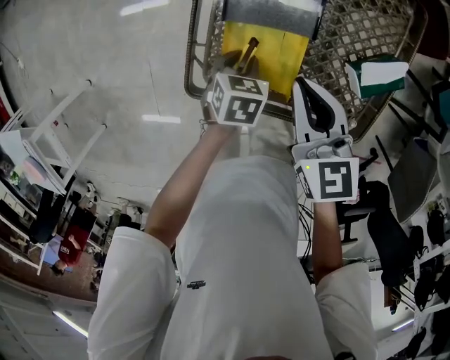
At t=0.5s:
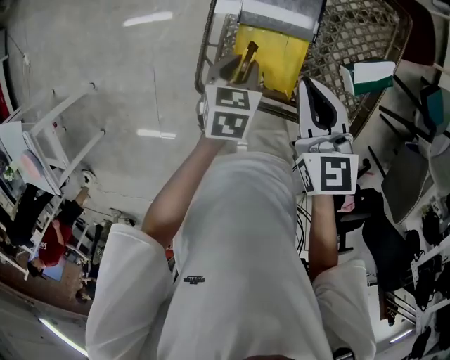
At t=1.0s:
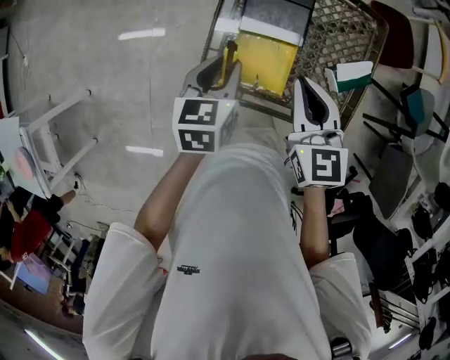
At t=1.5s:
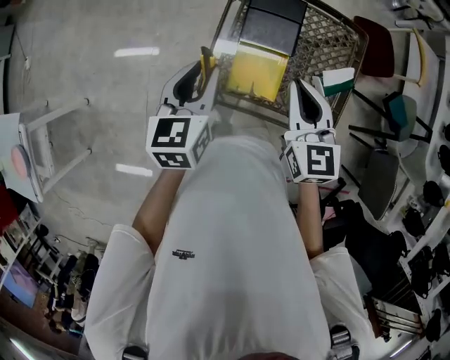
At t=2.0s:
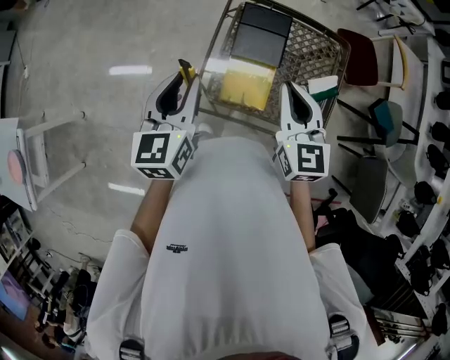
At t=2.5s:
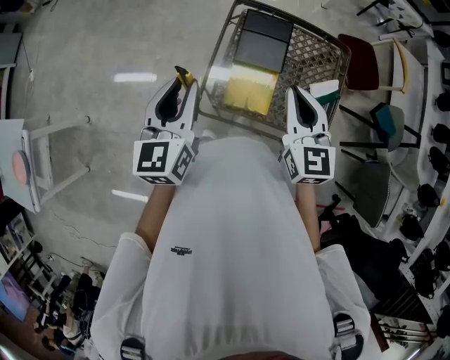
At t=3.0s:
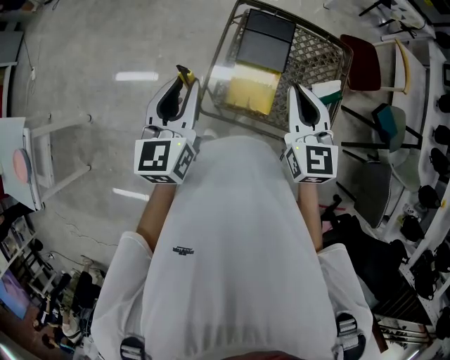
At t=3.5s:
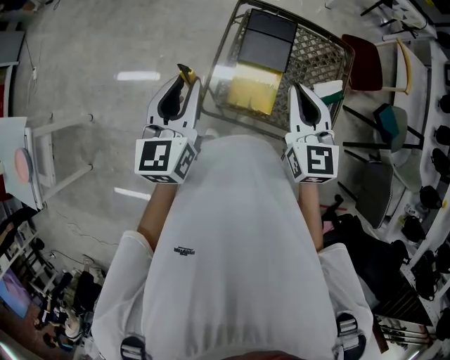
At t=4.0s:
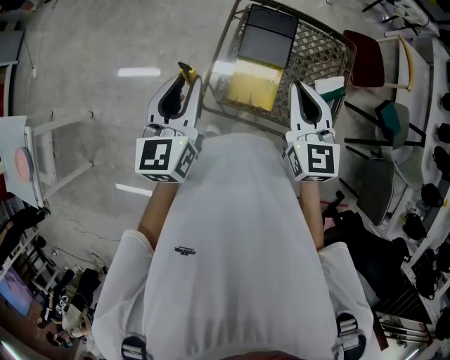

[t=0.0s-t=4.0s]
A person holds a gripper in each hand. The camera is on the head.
t=0.0s to t=2.0s: The right gripper travels upward by approximately 20 cm, and turns by some 20 degrees; the left gripper heads upward, covering some 40 cm, and angles its fingers upward, by some 50 degrees.
t=2.0s to t=4.0s: The grippers stay close to where they were, moving slightly.

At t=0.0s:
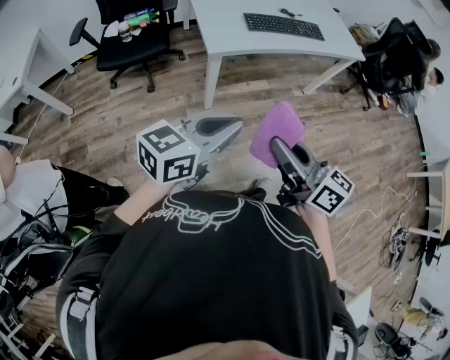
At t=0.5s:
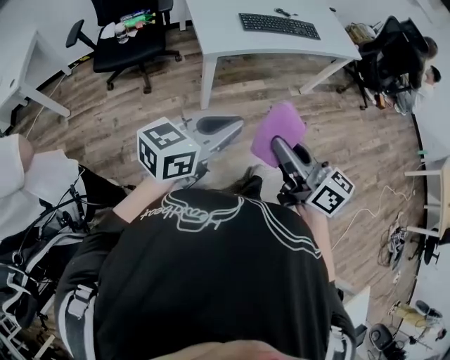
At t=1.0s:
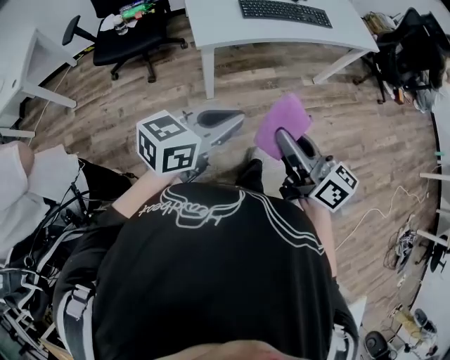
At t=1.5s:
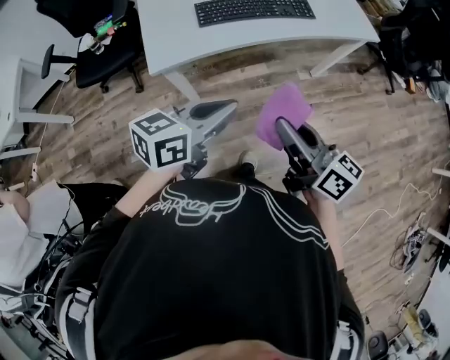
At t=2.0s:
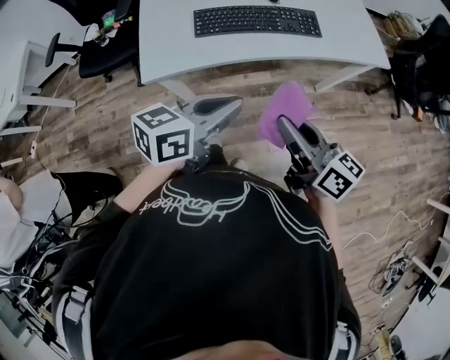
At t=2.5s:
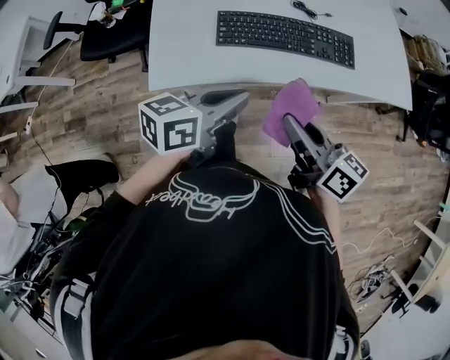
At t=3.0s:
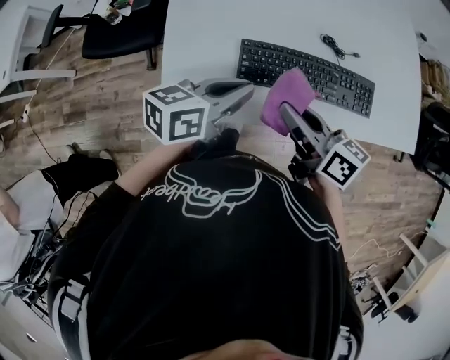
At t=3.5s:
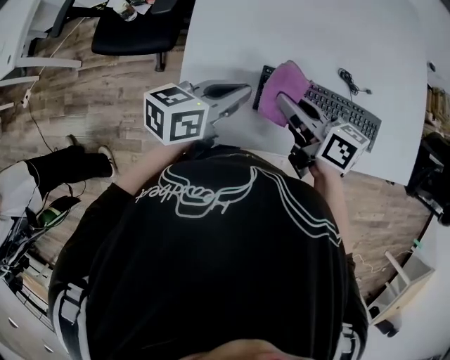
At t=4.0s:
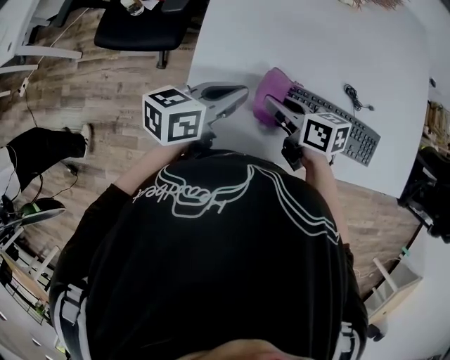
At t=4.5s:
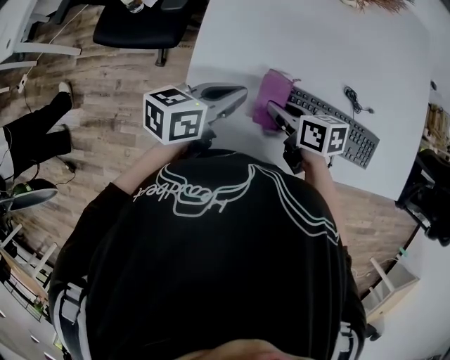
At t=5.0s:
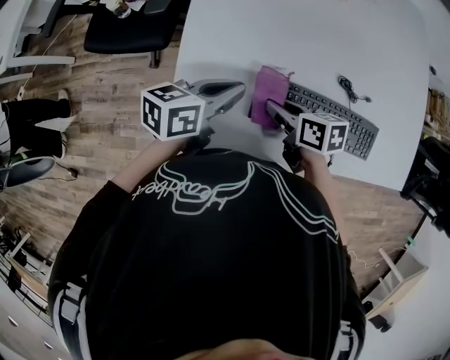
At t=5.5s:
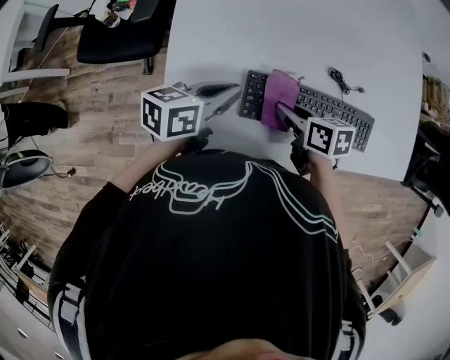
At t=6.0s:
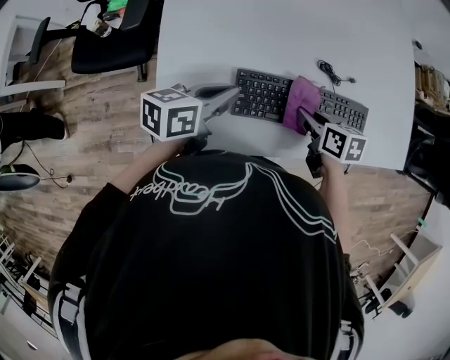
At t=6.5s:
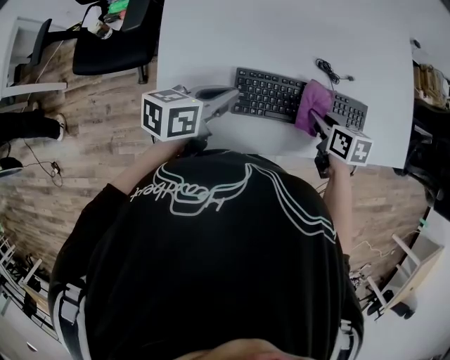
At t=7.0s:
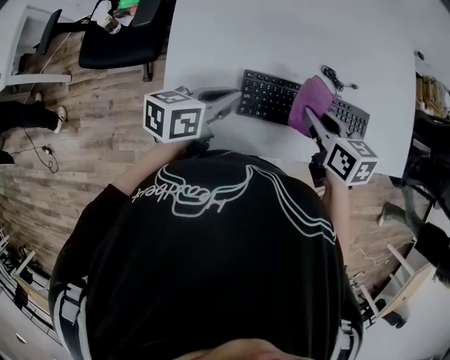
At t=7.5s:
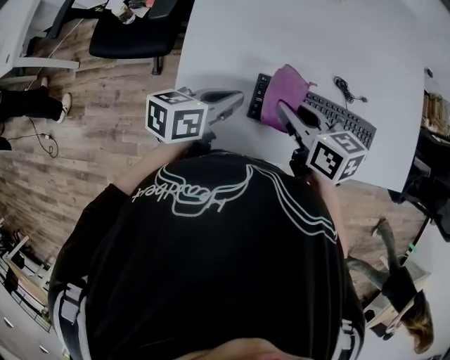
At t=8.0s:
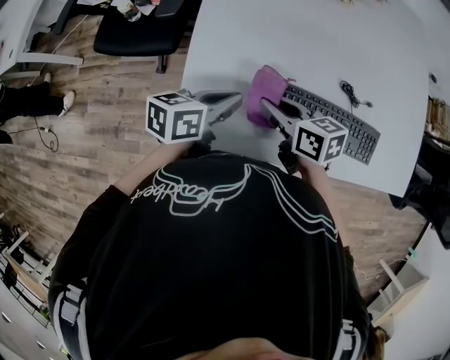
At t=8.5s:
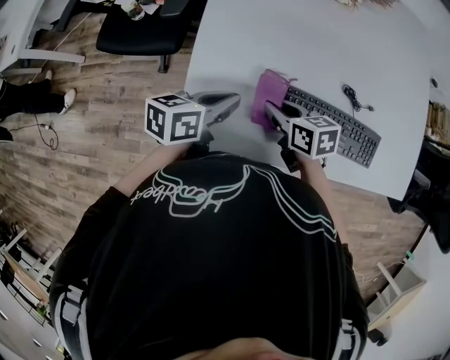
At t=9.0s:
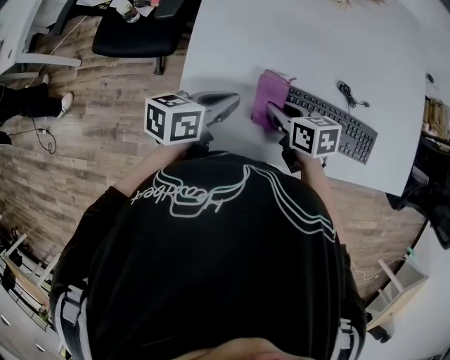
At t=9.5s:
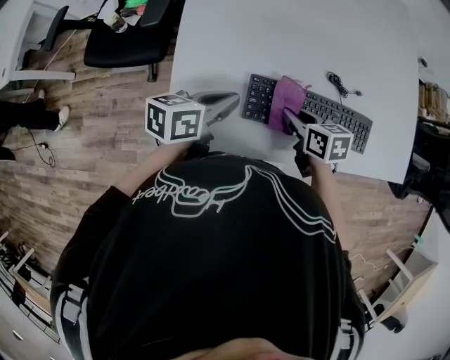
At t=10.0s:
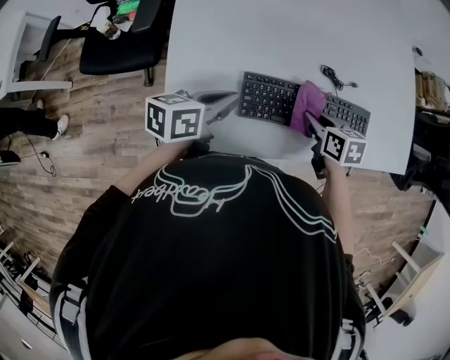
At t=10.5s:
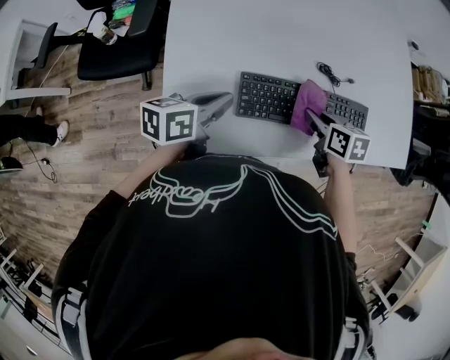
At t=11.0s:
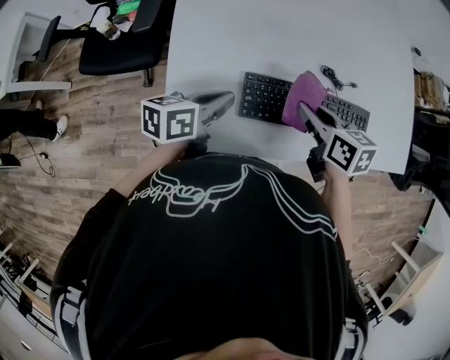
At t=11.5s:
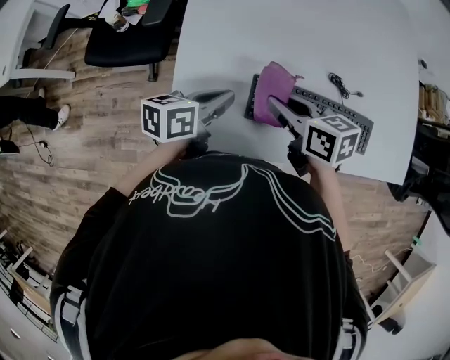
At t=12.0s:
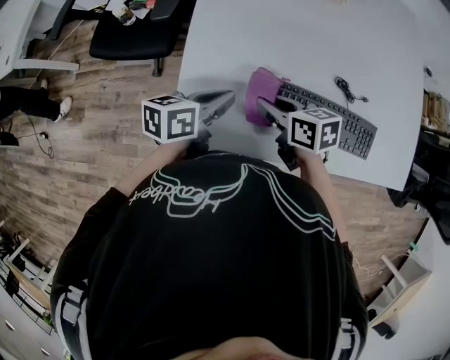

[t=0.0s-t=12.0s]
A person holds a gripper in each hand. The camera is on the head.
t=0.0s to t=2.0s: The two grippers go about 40 cm forward and to the right.
t=2.0s to t=4.0s: The grippers both shift forward and to the left by about 40 cm. The left gripper rotates about 20 degrees, while the right gripper rotates about 40 degrees.
t=4.0s to t=6.0s: The left gripper is displaced to the right by about 5 cm; the right gripper goes some 20 cm to the right, and rotates some 30 degrees.
t=6.0s to t=8.0s: The right gripper heads to the left, covering about 20 cm, and changes its angle by some 30 degrees. Meanwhile the left gripper goes some 5 cm to the left.
t=8.0s to t=10.0s: The right gripper heads to the right, covering roughly 20 cm, and changes its angle by roughly 30 degrees.
t=10.0s to t=12.0s: The right gripper shifts roughly 20 cm to the left, and changes its angle by about 20 degrees.

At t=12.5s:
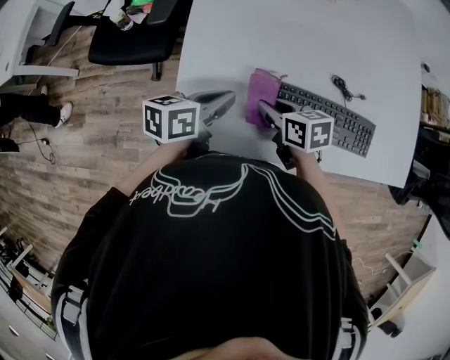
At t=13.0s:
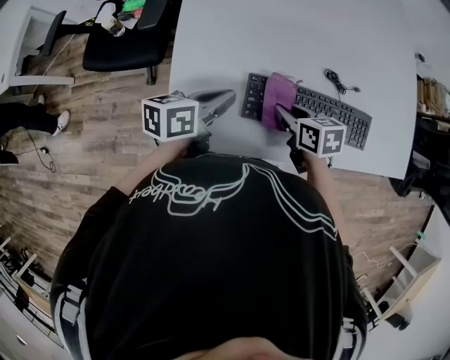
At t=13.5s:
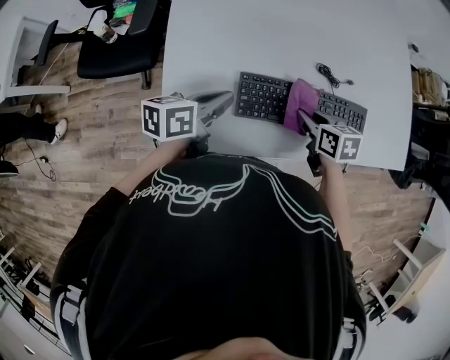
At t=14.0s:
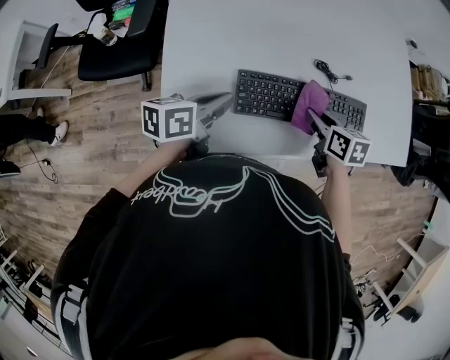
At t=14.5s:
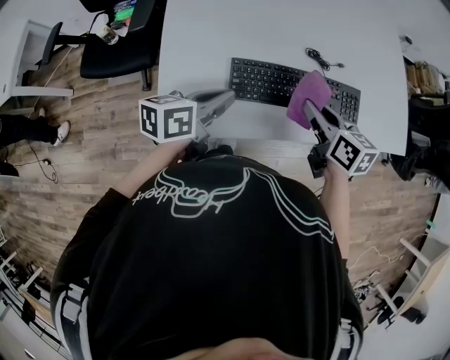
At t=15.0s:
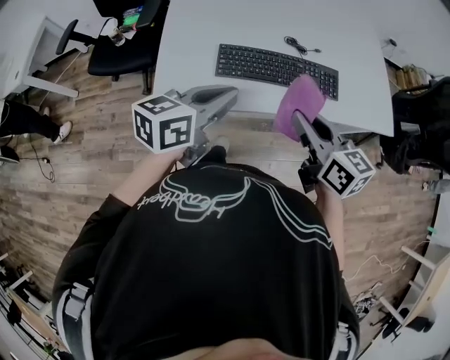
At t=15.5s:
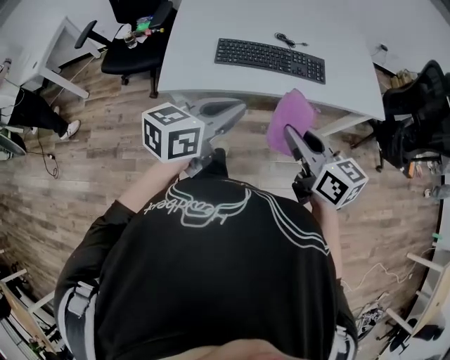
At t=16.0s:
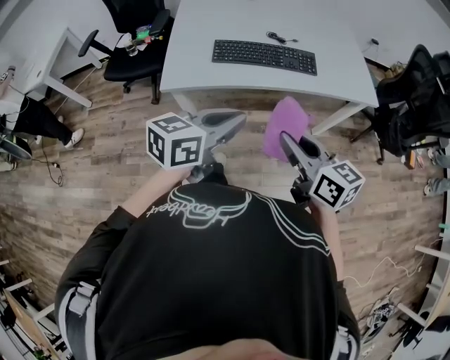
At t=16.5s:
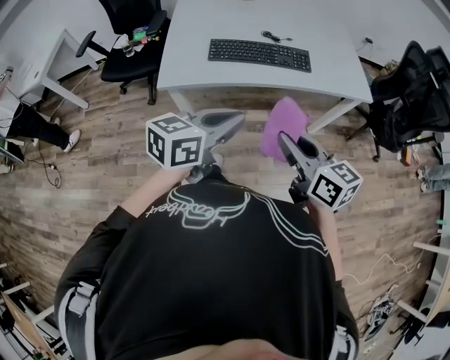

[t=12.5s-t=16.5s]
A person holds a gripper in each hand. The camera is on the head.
t=12.5s to t=14.5s: The right gripper goes roughly 20 cm to the right and upward, and swivels some 30 degrees. The left gripper is displaced to the right by approximately 5 cm.
t=14.5s to t=16.5s: The right gripper shifts some 35 cm backward; the left gripper heads backward and to the right, covering some 35 cm, and turns by approximately 20 degrees.

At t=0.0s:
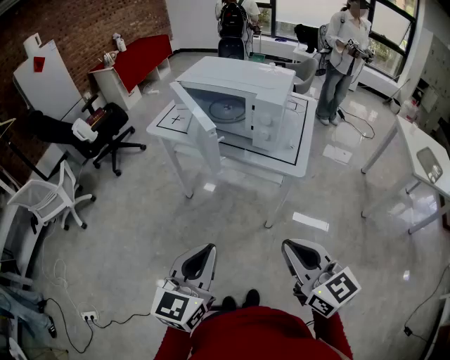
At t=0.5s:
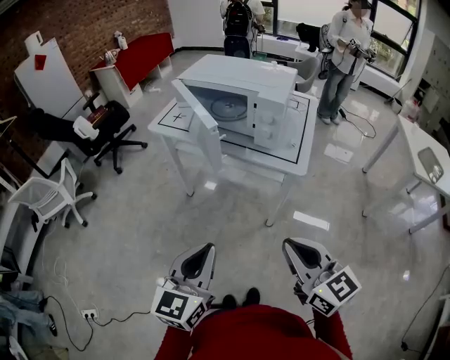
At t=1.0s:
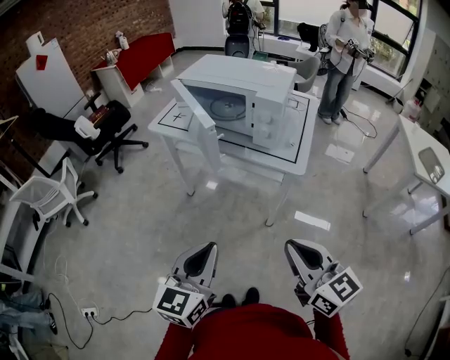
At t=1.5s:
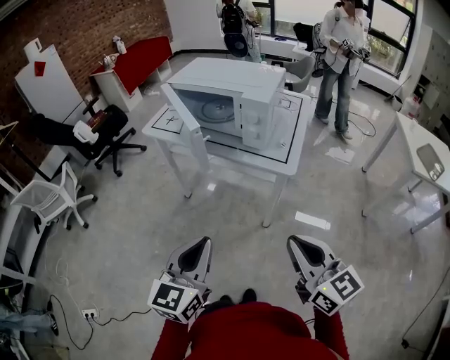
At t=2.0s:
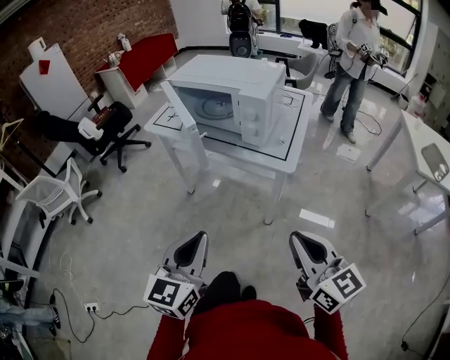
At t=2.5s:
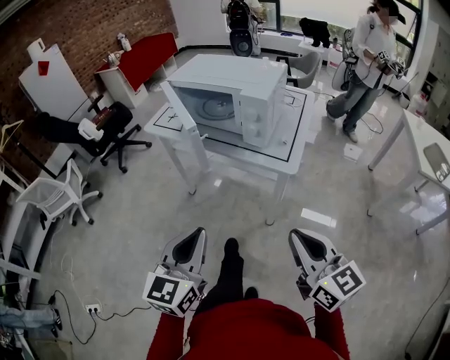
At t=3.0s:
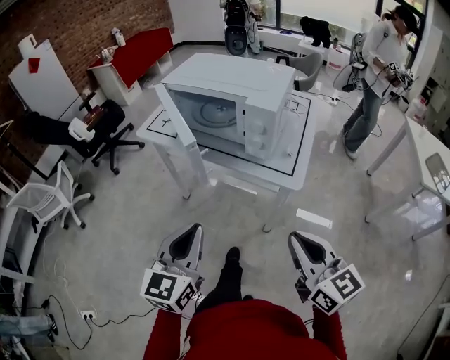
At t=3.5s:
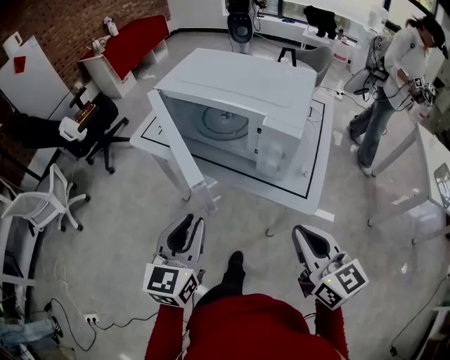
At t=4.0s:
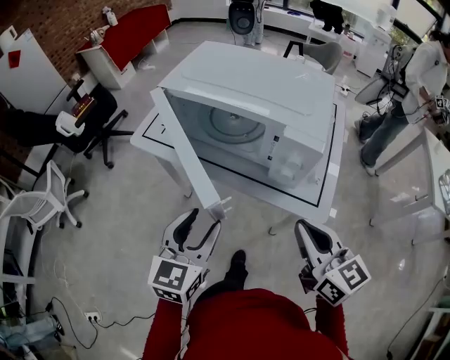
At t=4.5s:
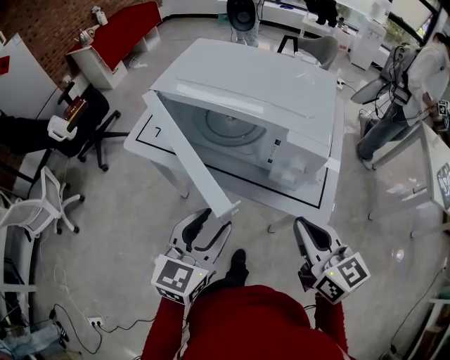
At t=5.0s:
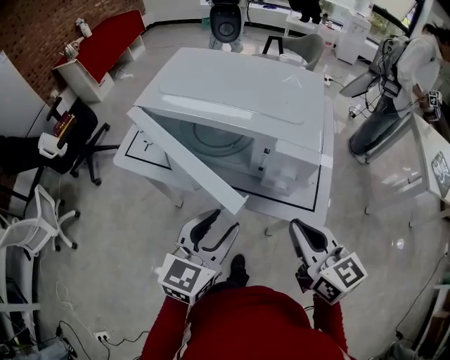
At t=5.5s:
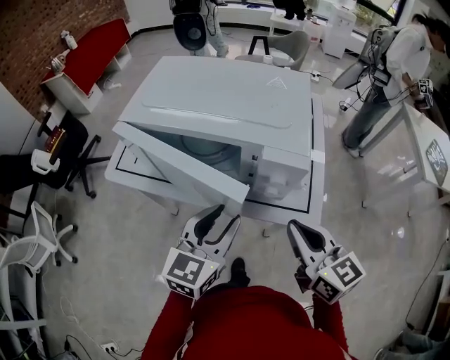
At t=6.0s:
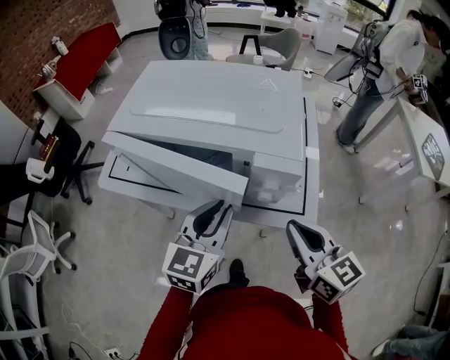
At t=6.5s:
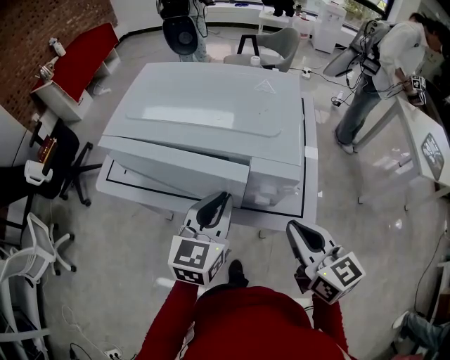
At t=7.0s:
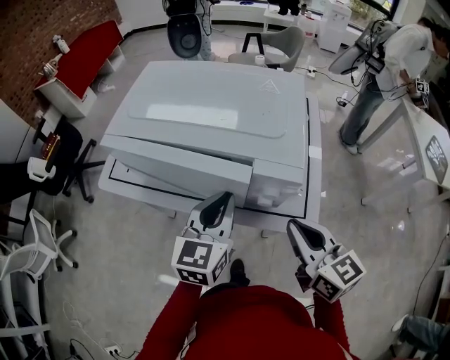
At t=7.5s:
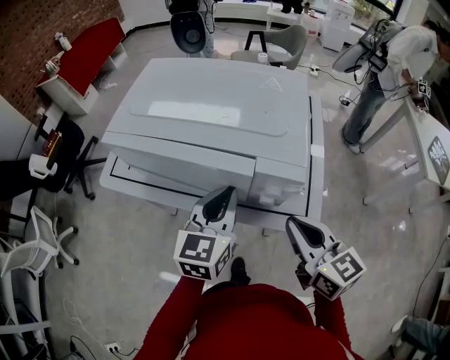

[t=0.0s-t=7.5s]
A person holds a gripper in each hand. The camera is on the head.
t=0.0s to t=2.0s: The right gripper travels to the right by about 10 cm.
t=2.0s to t=4.0s: The grippers both shift forward by some 25 cm. The left gripper opens up.
t=4.0s to t=5.5s: The left gripper shifts approximately 10 cm to the right and forward.
t=5.5s to t=7.5s: The left gripper heads forward, covering roughly 5 cm, and closes.
